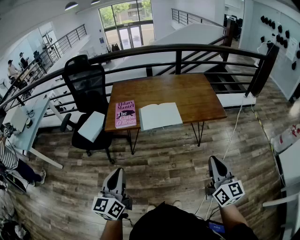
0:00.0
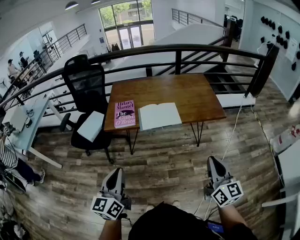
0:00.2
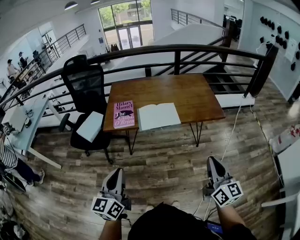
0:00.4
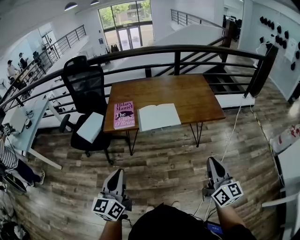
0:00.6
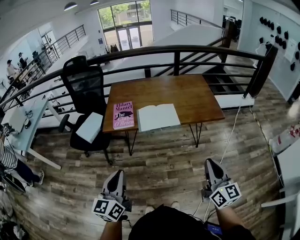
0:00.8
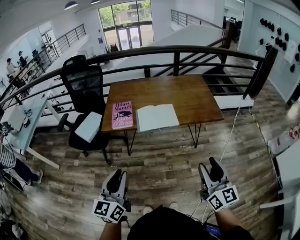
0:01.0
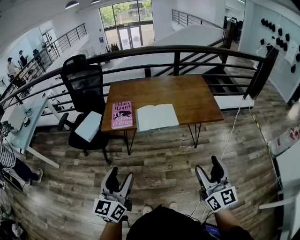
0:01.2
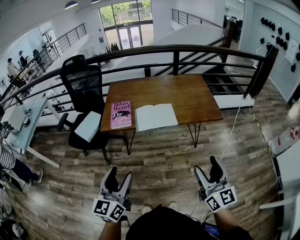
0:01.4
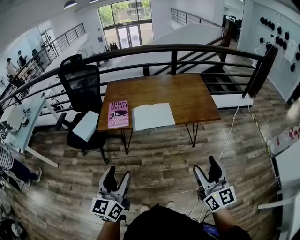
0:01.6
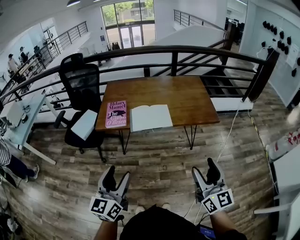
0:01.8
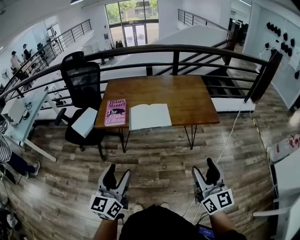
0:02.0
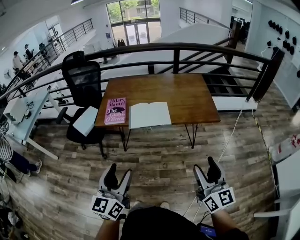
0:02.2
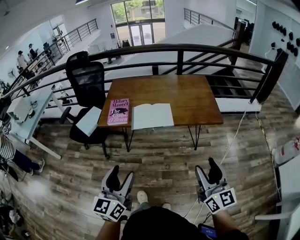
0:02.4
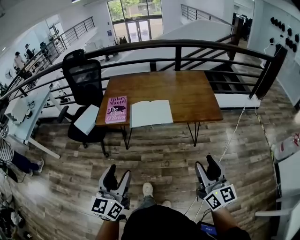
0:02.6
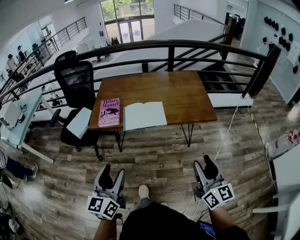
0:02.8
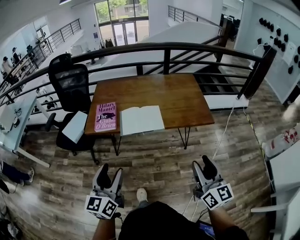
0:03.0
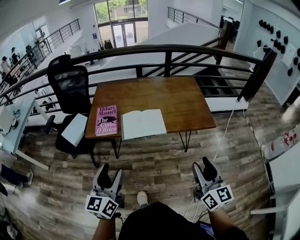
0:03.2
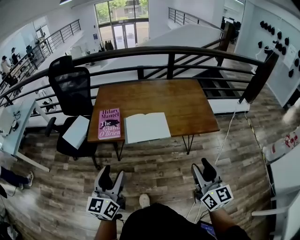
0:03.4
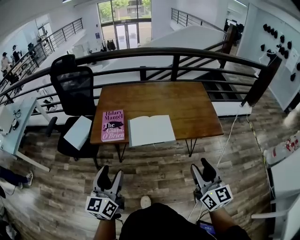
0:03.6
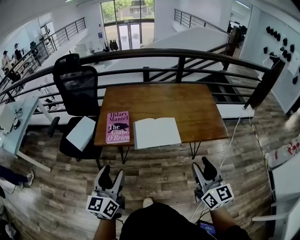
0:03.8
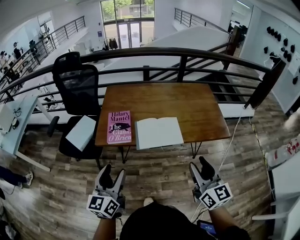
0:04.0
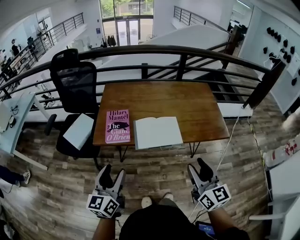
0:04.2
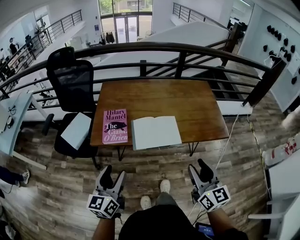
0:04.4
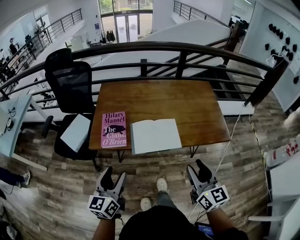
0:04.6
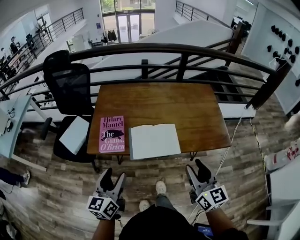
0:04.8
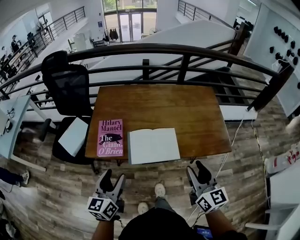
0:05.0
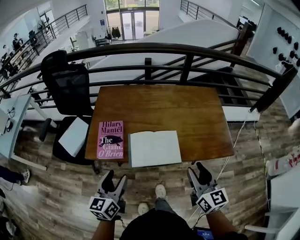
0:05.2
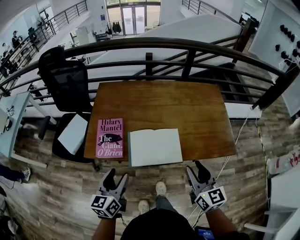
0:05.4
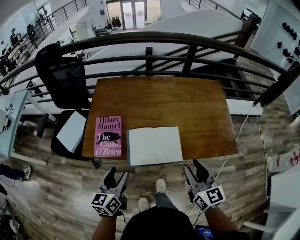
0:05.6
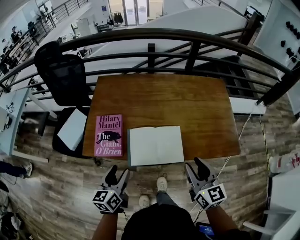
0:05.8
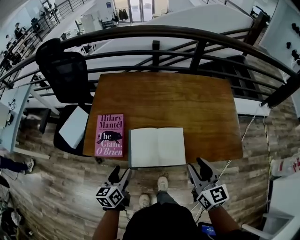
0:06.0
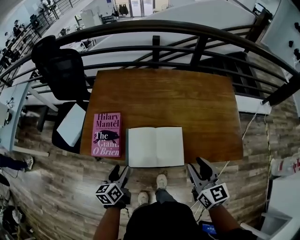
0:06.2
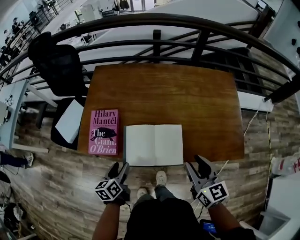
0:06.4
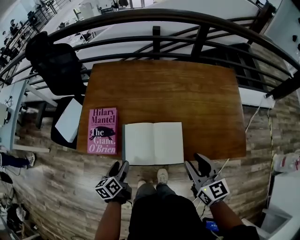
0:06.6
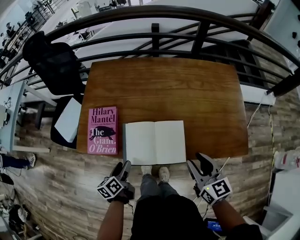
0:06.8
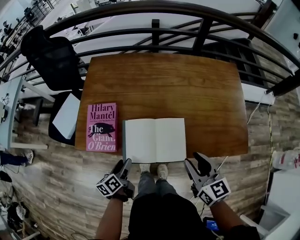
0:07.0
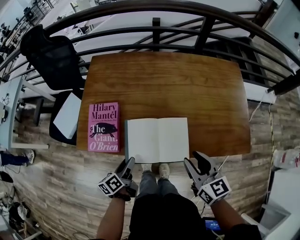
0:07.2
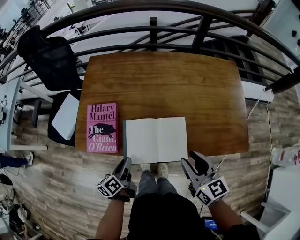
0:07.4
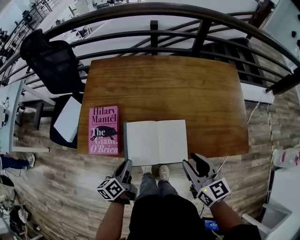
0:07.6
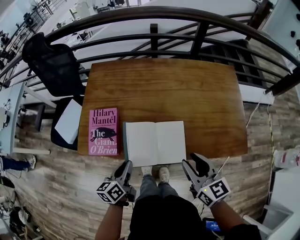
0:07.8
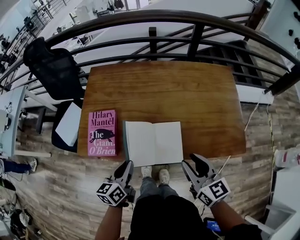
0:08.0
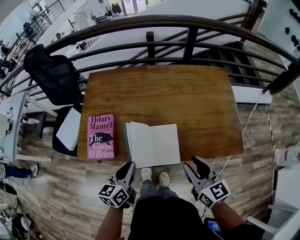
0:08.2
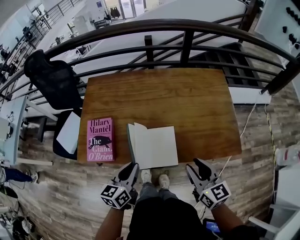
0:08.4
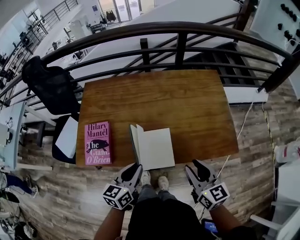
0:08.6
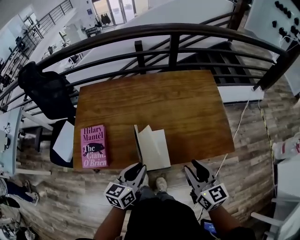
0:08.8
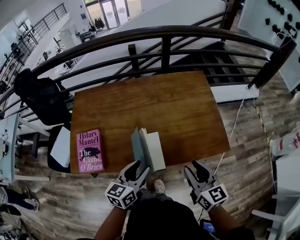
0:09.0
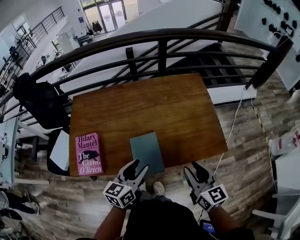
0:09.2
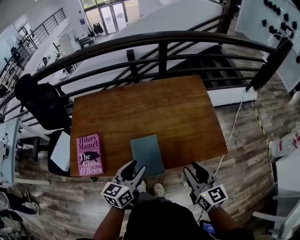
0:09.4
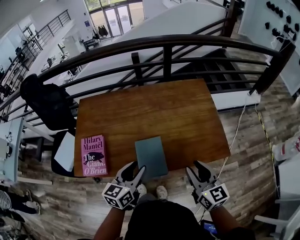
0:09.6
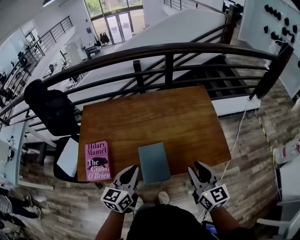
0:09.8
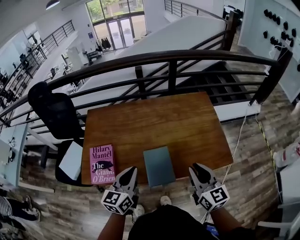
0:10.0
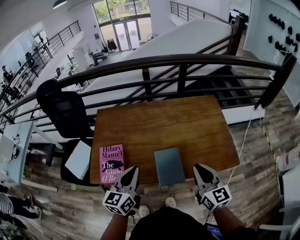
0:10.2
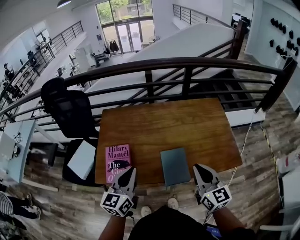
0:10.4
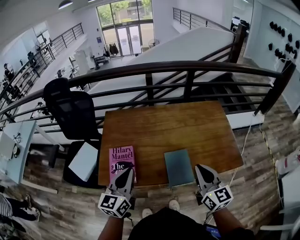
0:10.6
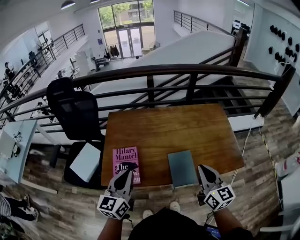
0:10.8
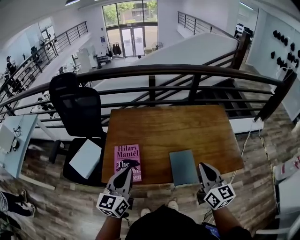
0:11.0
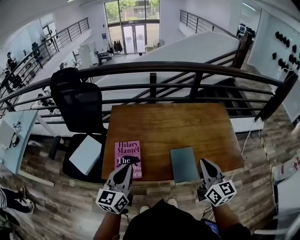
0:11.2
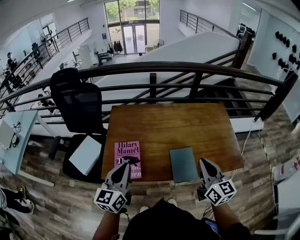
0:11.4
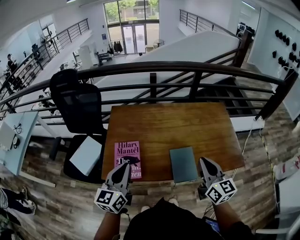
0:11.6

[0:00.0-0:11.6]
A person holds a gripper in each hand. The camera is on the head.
0:00.0 to 0:01.4: The right gripper opens up, while the left gripper opens its fingers.
0:01.4 to 0:02.8: The grippers both shift to the right by some 5 cm.
0:02.8 to 0:04.4: Both grippers move forward and to the left, approximately 20 cm.
0:04.4 to 0:05.8: The right gripper heads forward, covering roughly 20 cm; the left gripper shifts some 20 cm forward and downward.
0:05.8 to 0:07.2: The right gripper heads downward, covering approximately 5 cm, while the left gripper moves downward, some 15 cm, and turns by approximately 30 degrees.
0:07.2 to 0:08.8: The right gripper moves to the right, about 10 cm, while the left gripper travels to the right and upward by approximately 20 cm, rolls clockwise, seen from behind, by approximately 40 degrees, and closes its fingers.
0:08.8 to 0:10.2: The left gripper is displaced upward and to the left by approximately 15 cm, and opens and closes again. Meanwhile the right gripper is displaced upward and to the left by about 10 cm, and closes up.
0:10.2 to 0:11.6: The left gripper goes about 15 cm to the left. Meanwhile the right gripper shifts approximately 10 cm to the left.

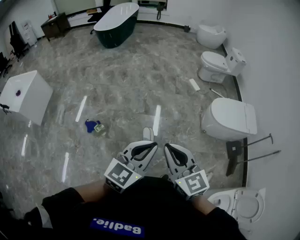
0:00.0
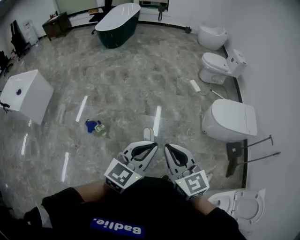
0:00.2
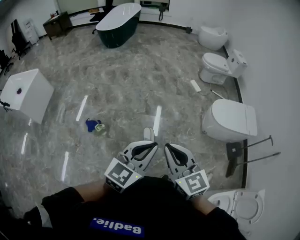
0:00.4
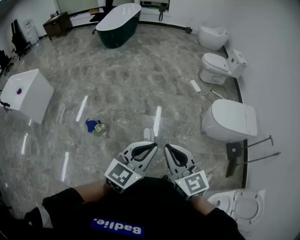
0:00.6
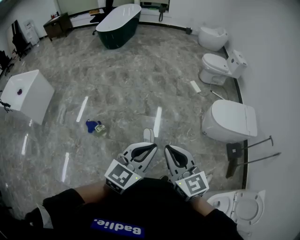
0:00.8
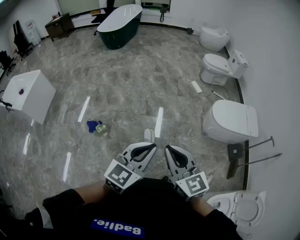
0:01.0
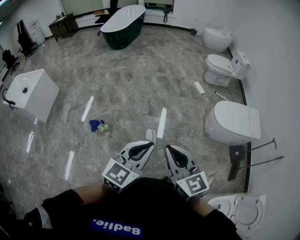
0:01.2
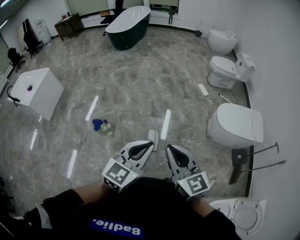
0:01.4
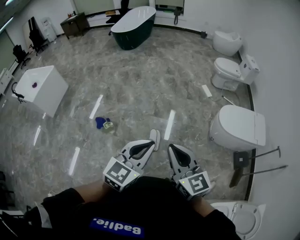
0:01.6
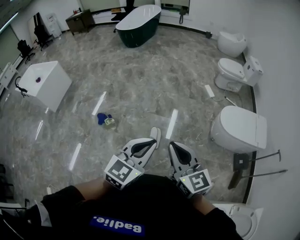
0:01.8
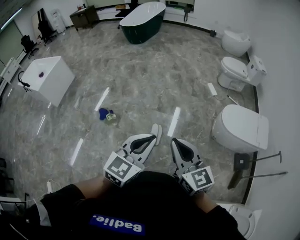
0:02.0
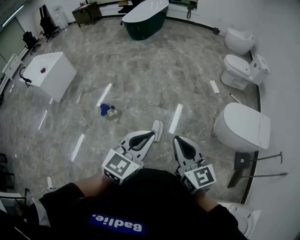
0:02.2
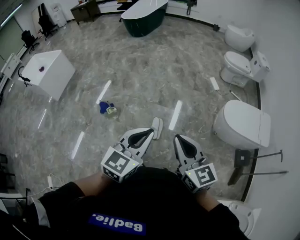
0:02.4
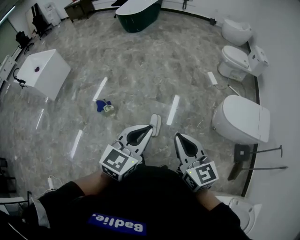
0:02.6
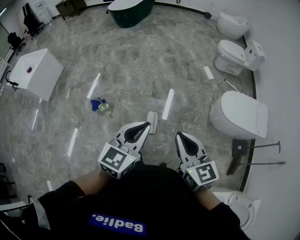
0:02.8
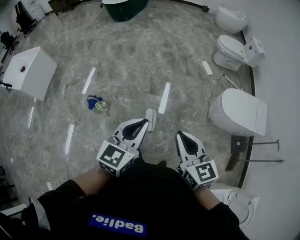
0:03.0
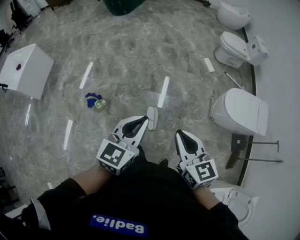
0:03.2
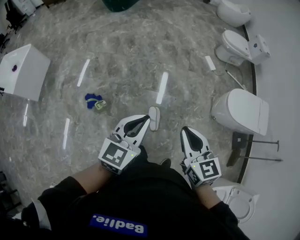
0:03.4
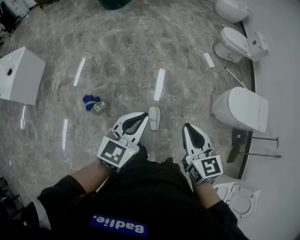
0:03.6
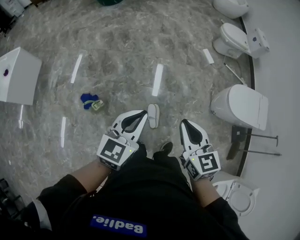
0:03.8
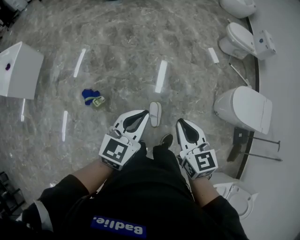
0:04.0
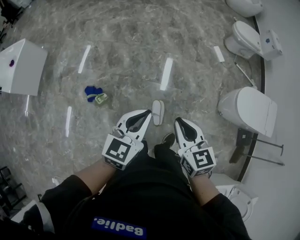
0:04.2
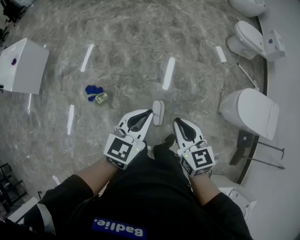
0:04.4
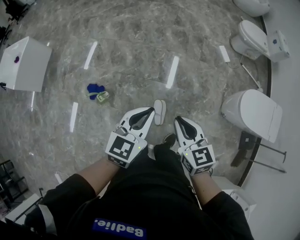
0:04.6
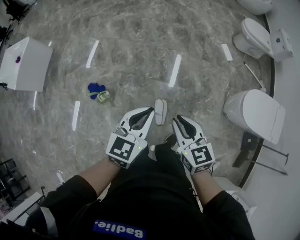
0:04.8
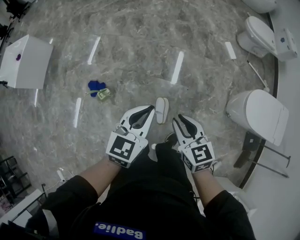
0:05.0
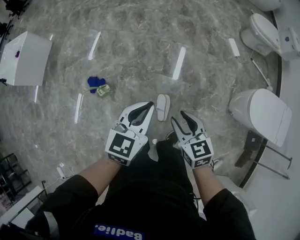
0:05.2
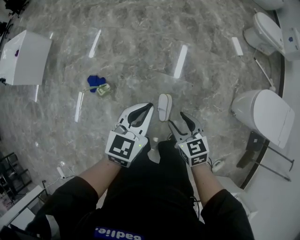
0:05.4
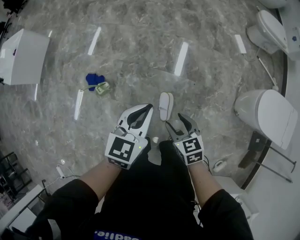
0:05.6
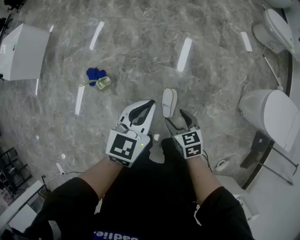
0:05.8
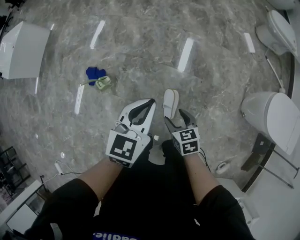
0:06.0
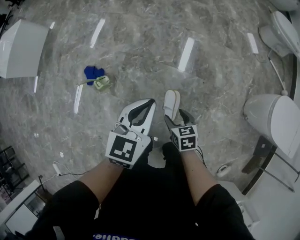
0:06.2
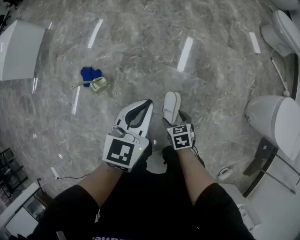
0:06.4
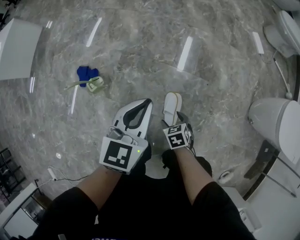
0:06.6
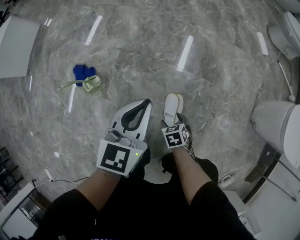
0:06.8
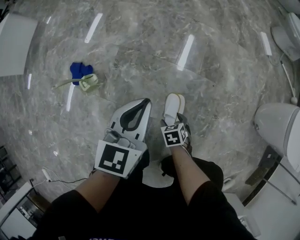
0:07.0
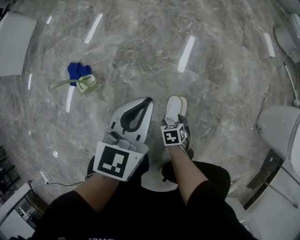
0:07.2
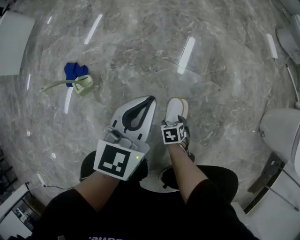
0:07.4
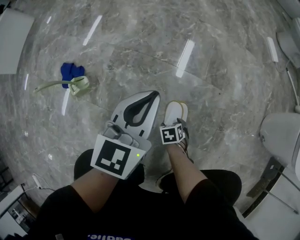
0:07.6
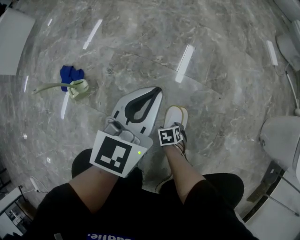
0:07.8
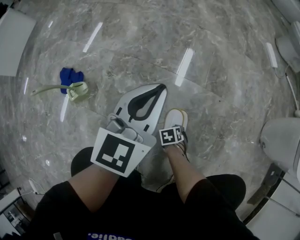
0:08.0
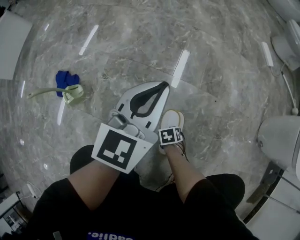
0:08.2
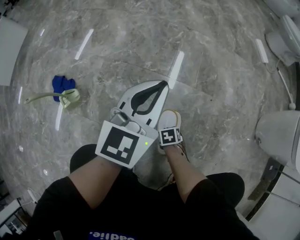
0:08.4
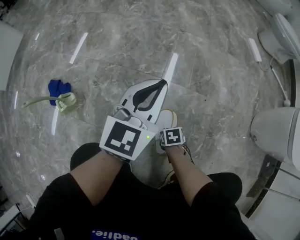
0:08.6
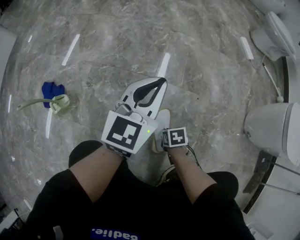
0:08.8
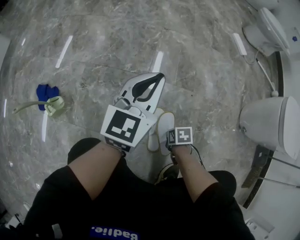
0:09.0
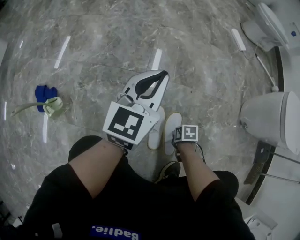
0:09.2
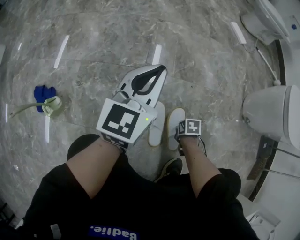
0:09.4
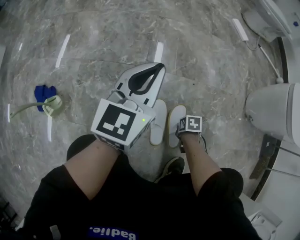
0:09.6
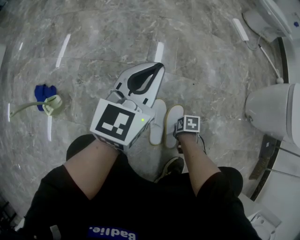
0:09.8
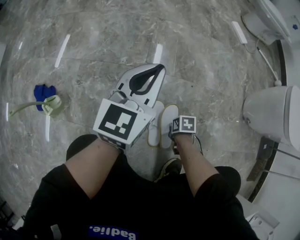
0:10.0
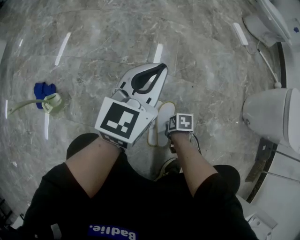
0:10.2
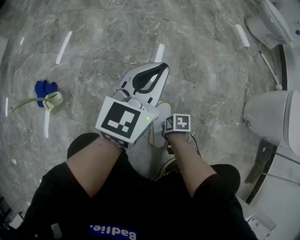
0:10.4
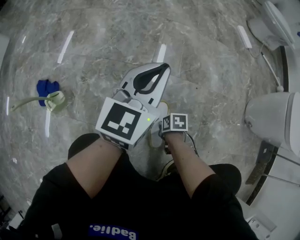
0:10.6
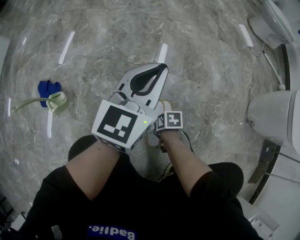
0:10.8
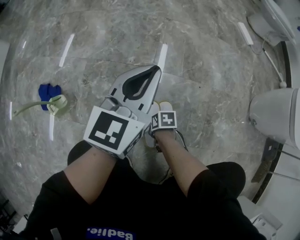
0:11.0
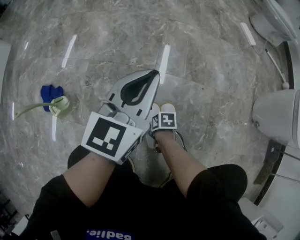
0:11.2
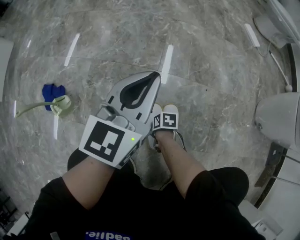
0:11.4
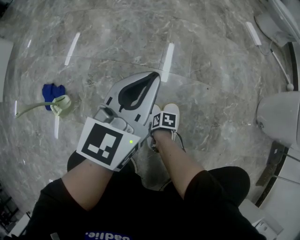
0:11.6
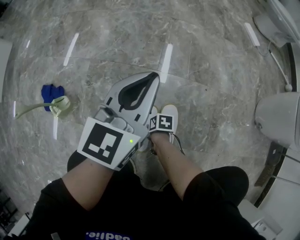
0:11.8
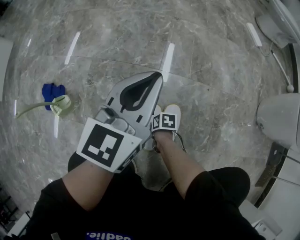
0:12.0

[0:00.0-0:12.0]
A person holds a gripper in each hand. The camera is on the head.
0:00.0 to 0:01.6: Both grippers travel together to the right, roughly 5 cm.
0:01.6 to 0:03.0: The grippers both shift forward and downward by roughly 10 cm.
0:03.0 to 0:04.4: The two grippers go approximately 25 cm forward, downward and to the left.
0:04.4 to 0:06.0: The left gripper is displaced downward by some 20 cm; the right gripper moves downward, some 35 cm, turns by roughly 20 degrees, and opens.
0:06.0 to 0:07.6: The right gripper travels downward by about 50 cm, and tilts its fingers some 30 degrees downward, while the left gripper travels downward by some 30 cm.
0:07.6 to 0:09.0: The left gripper changes place by roughly 10 cm. The right gripper shifts by about 10 cm, swivels approximately 30 degrees, and closes up.
0:10.4 to 0:12.0: The left gripper goes roughly 5 cm to the left. The right gripper goes roughly 15 cm to the left, downward and forward.
